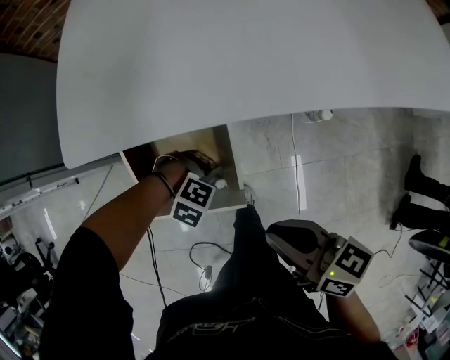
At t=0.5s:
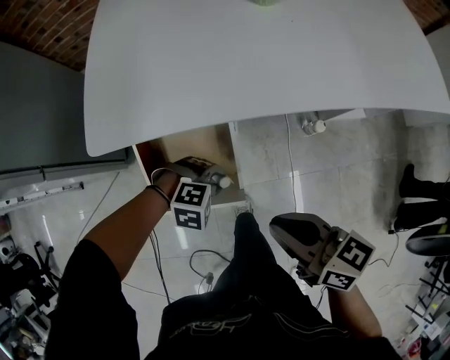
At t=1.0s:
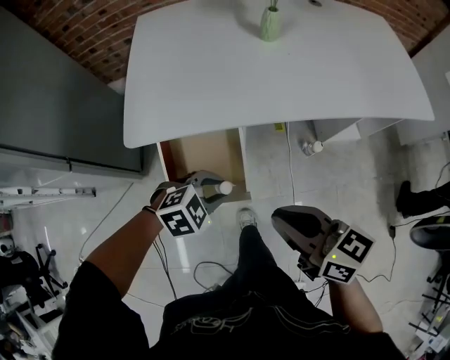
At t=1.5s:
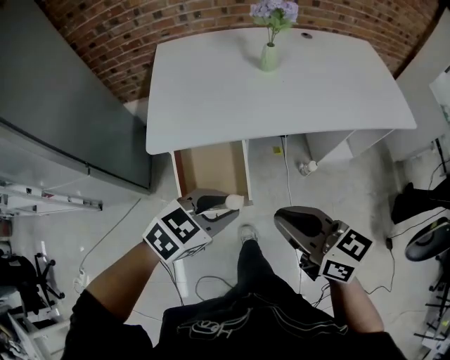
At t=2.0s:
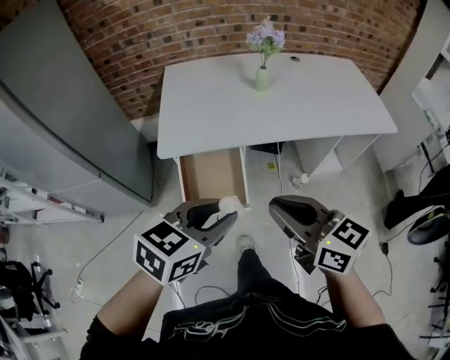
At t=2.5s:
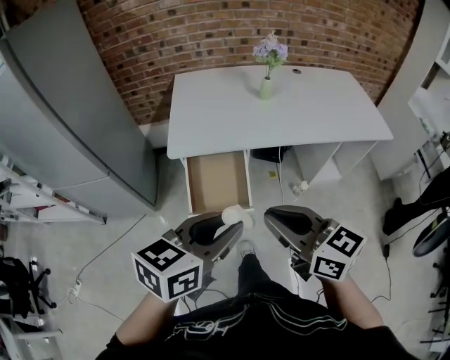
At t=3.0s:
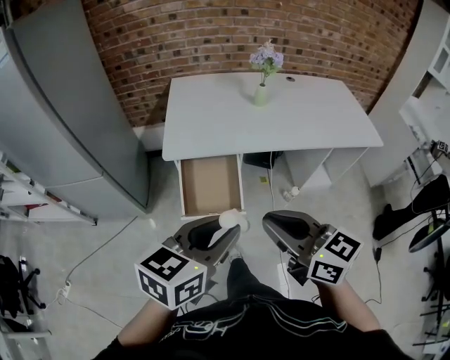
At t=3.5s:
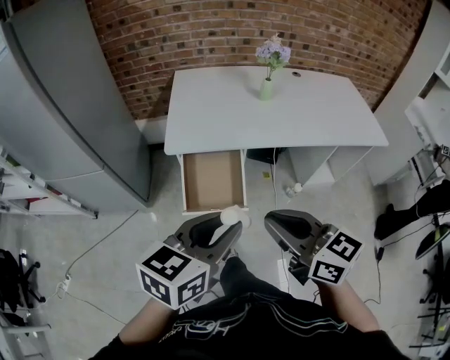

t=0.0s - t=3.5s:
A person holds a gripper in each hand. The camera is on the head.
t=0.0s - t=2.0s: The right gripper moves upward, approximately 35 cm, and turns by roughly 30 degrees, while the left gripper travels upward by approximately 50 cm, and tips its fingers upward by roughly 40 degrees.
t=2.0s - t=3.5s: The grippers both shift backward by some 5 cm.

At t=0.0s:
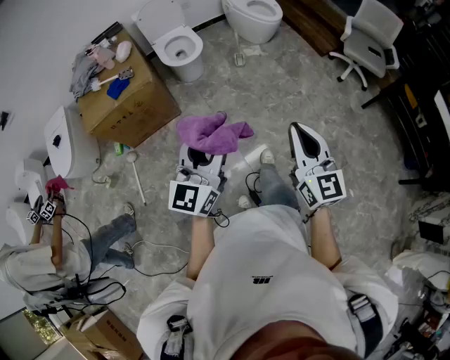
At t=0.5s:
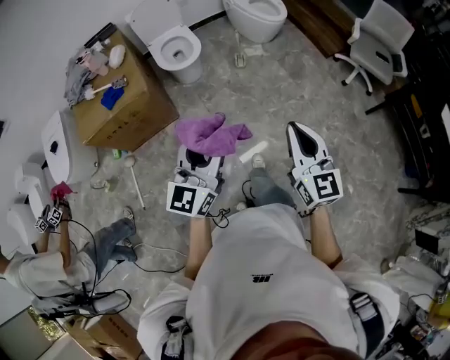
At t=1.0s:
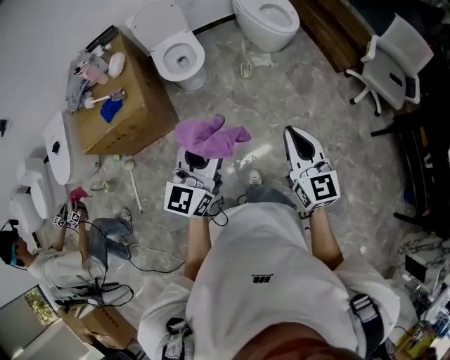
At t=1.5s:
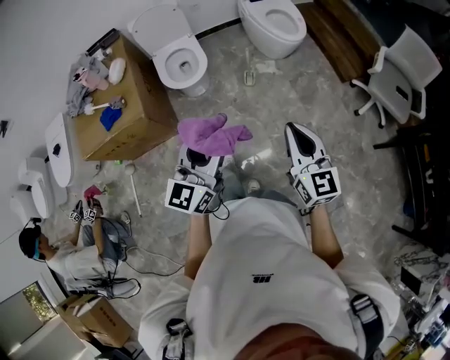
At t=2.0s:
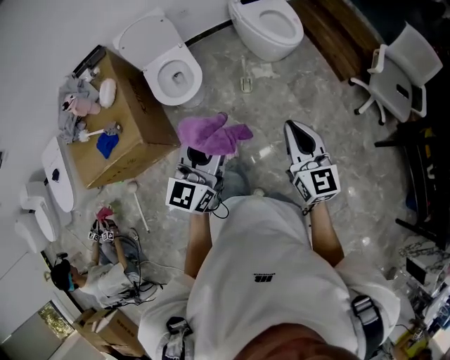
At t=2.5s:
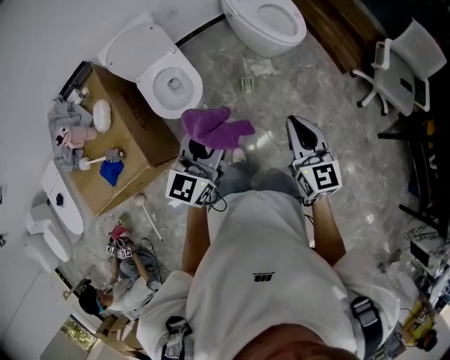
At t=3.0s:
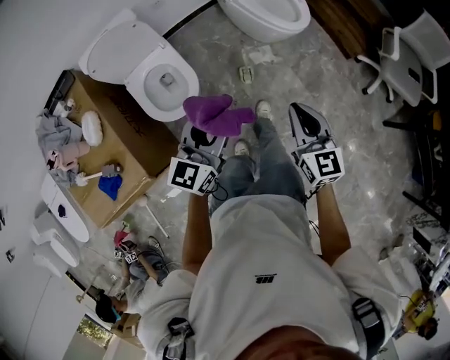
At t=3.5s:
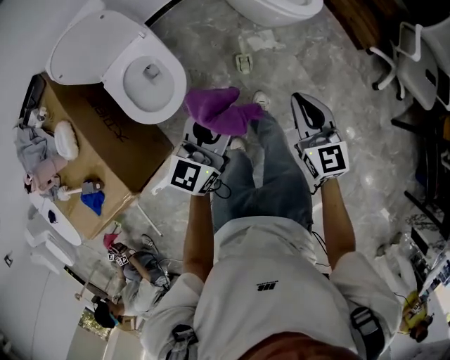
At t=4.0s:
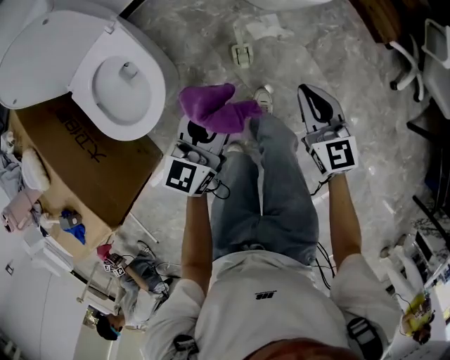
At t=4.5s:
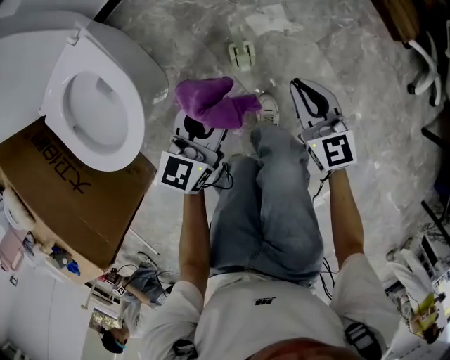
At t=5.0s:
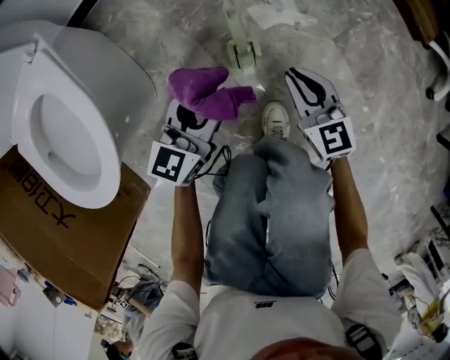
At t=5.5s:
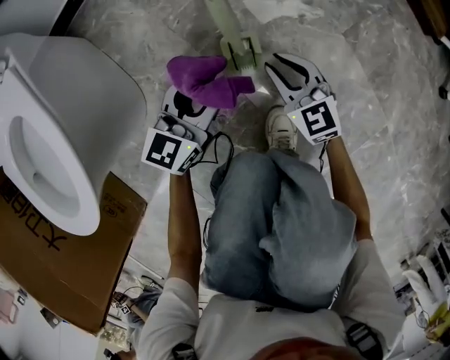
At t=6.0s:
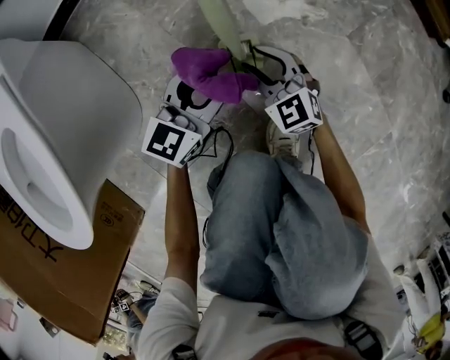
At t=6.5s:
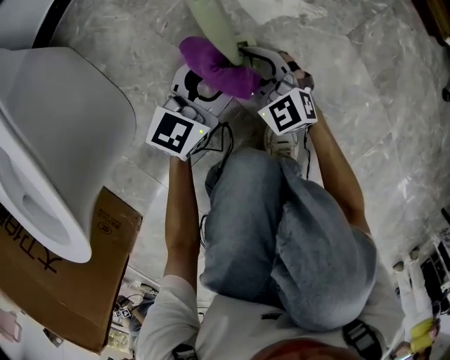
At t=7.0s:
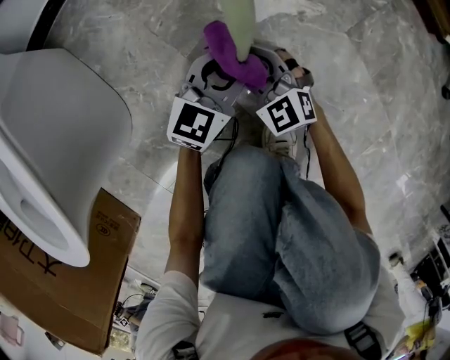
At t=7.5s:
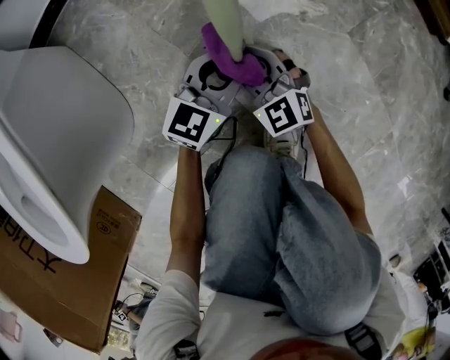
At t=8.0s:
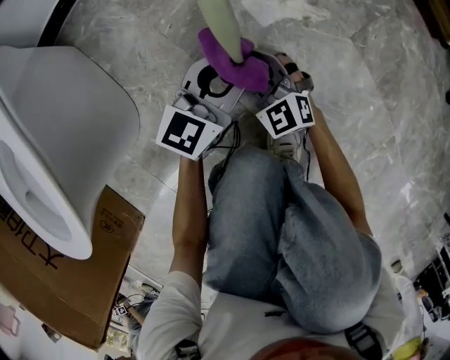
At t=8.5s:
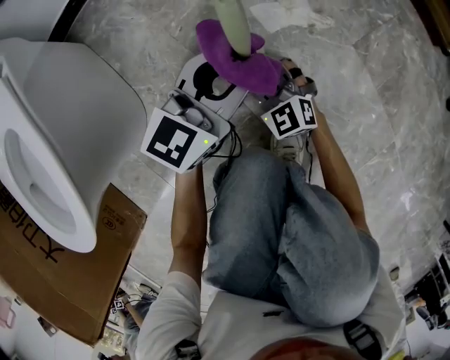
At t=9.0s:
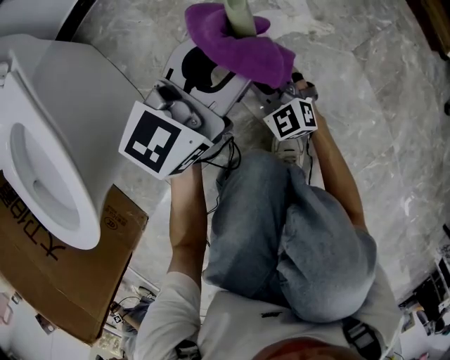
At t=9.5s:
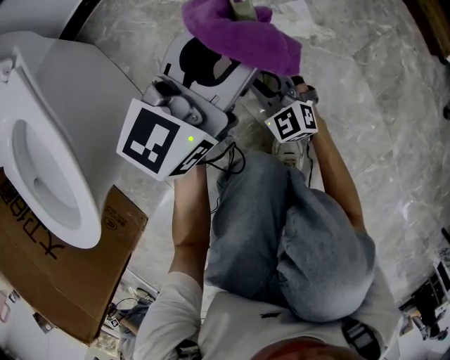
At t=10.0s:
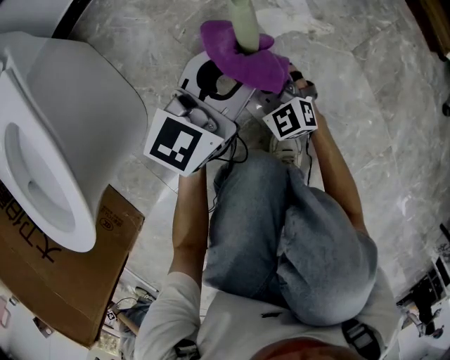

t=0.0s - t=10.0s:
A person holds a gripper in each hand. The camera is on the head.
t=0.0s - t=2.0s: The pair of grippers is taken forward, roughly 50 cm.
t=2.0s - t=4.0s: Both grippers travel together downward and forward, roughly 60 cm.
t=4.0s - t=6.0s: Both grippers move downward, about 50 cm. The right gripper turns by about 30 degrees, and opens.
t=6.0s - t=8.0s: The left gripper shifts by some 5 cm.
t=8.0s - t=10.0s: The left gripper heads upward, covering about 10 cm.

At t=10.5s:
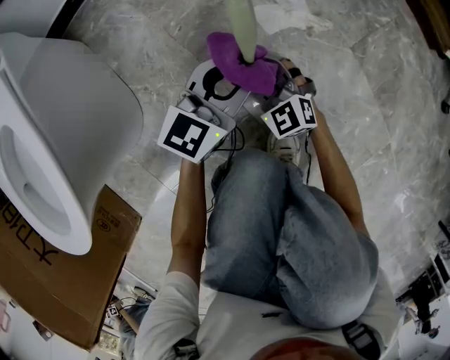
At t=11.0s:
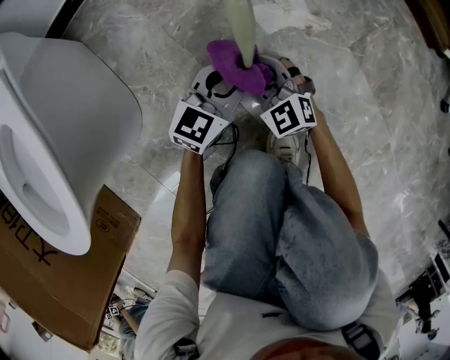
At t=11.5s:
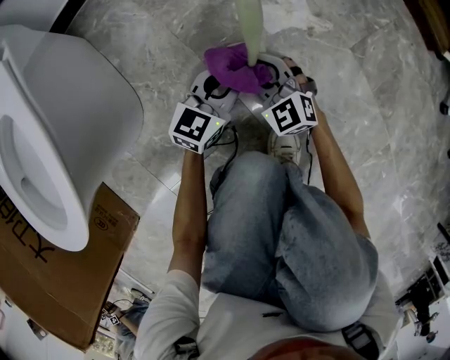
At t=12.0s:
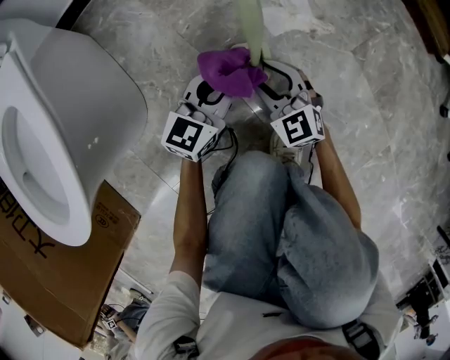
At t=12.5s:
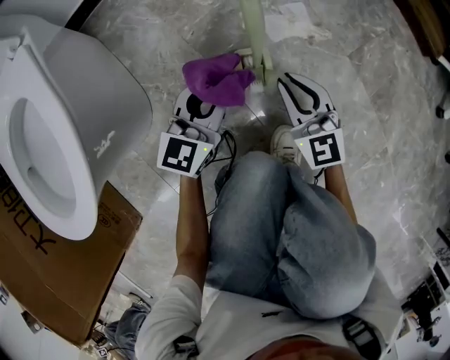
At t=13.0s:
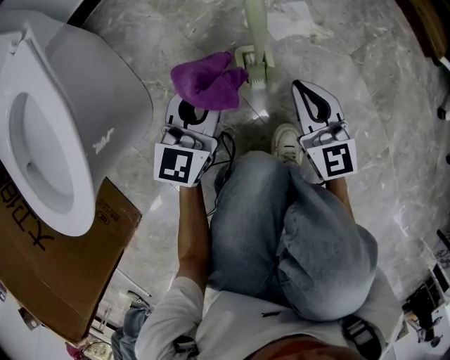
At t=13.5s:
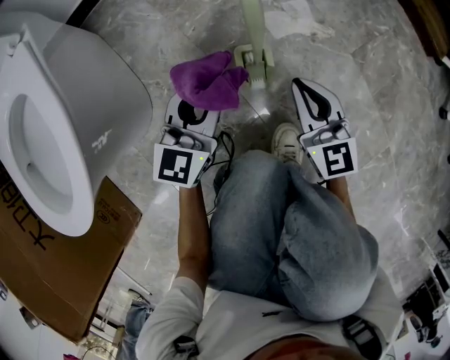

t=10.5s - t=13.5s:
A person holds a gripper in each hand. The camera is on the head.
t=10.5s - t=12.0s: The left gripper goes about 5 cm downward.
t=12.0s - t=13.5s: The right gripper moves upward and to the right, roughly 10 cm, turns by roughly 30 degrees, and closes its fingers. The left gripper heads upward, covering approximately 10 cm.

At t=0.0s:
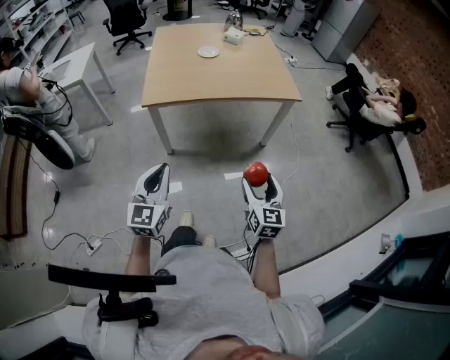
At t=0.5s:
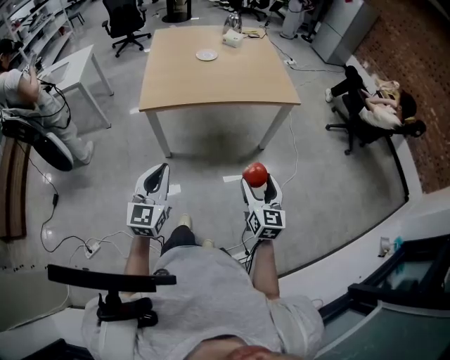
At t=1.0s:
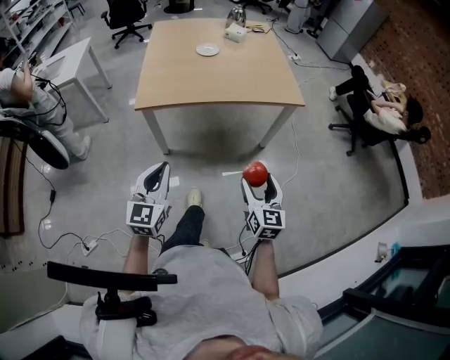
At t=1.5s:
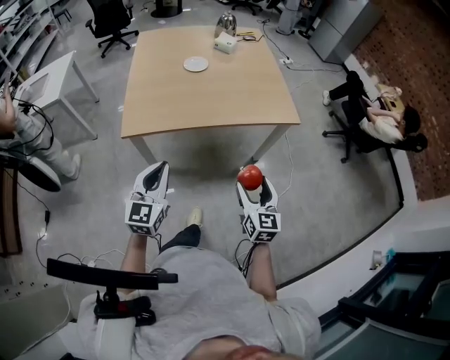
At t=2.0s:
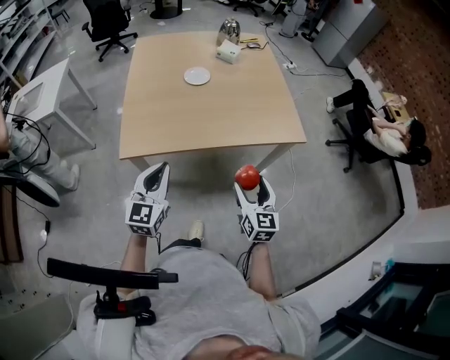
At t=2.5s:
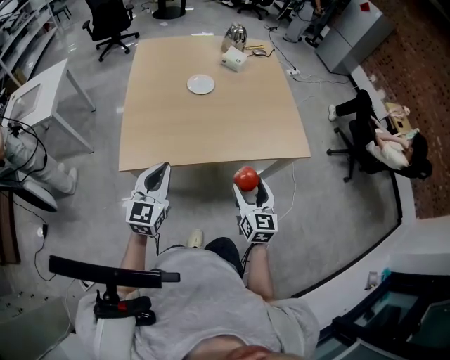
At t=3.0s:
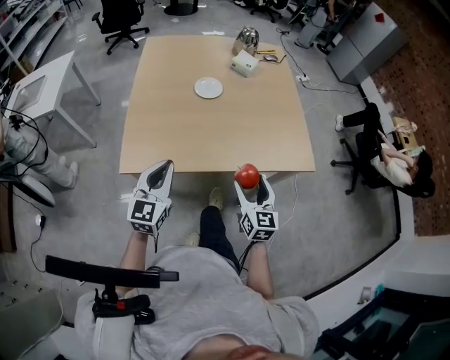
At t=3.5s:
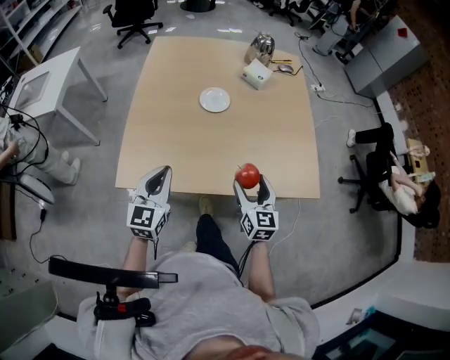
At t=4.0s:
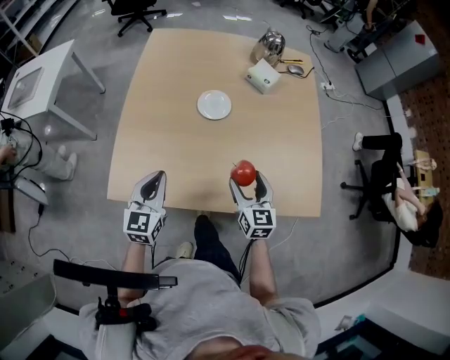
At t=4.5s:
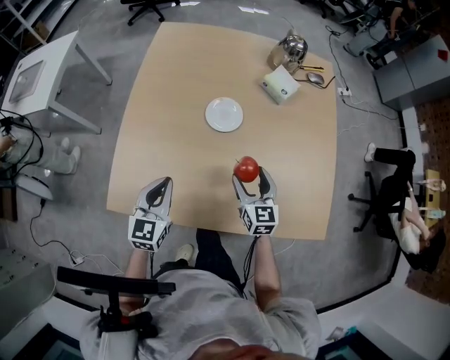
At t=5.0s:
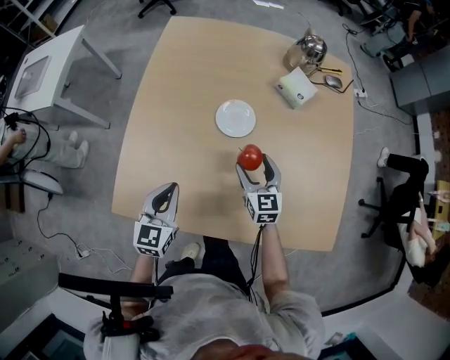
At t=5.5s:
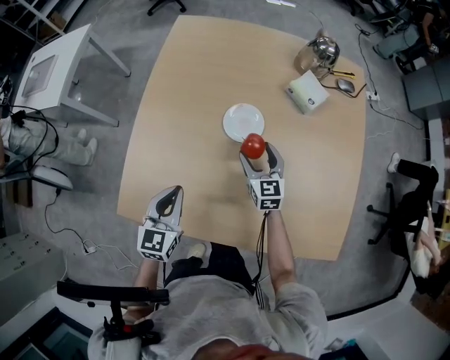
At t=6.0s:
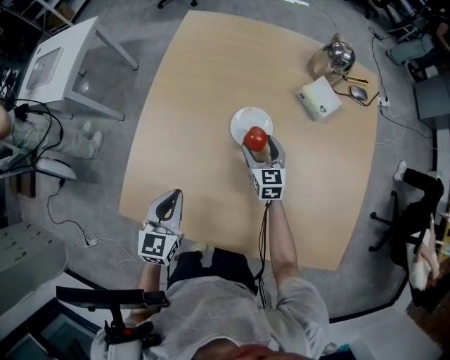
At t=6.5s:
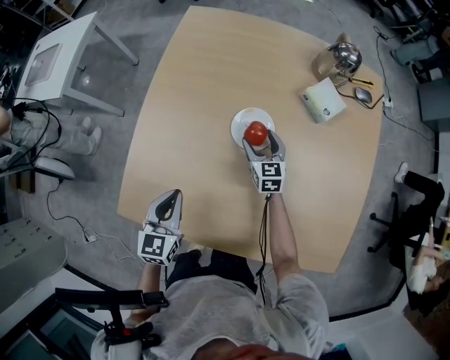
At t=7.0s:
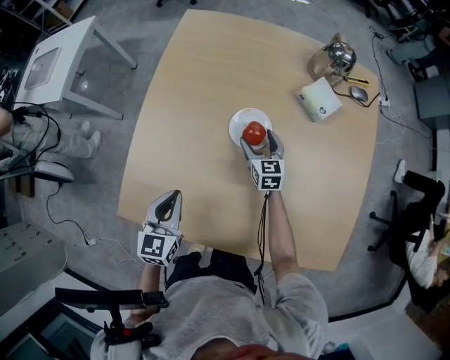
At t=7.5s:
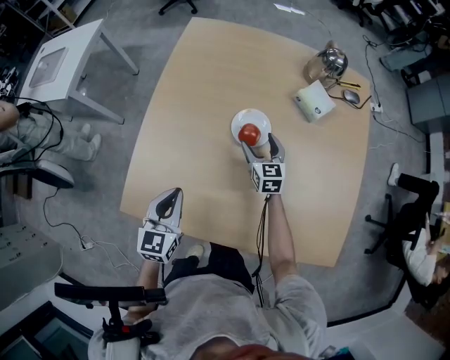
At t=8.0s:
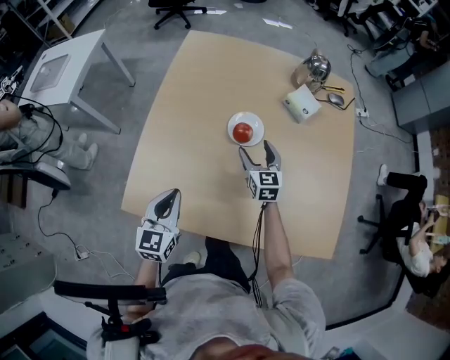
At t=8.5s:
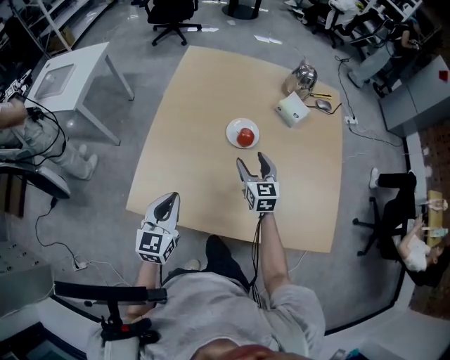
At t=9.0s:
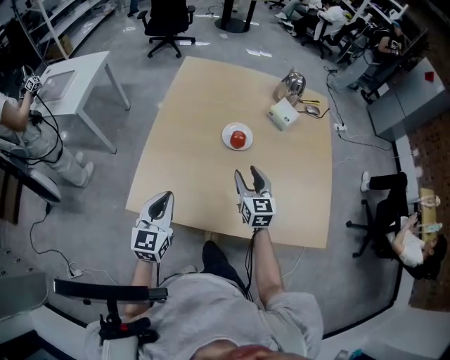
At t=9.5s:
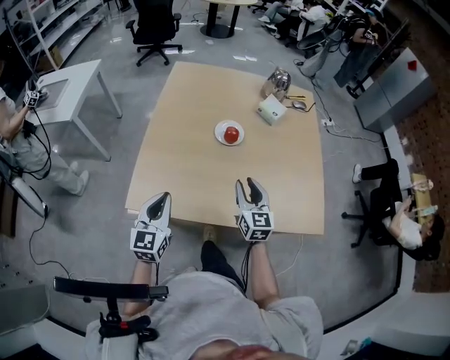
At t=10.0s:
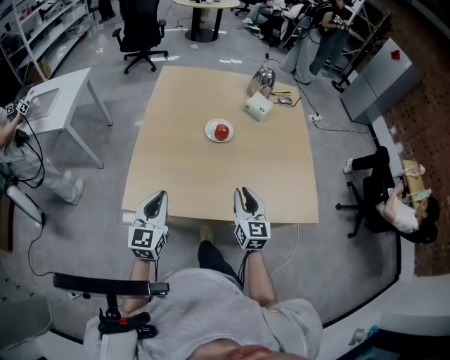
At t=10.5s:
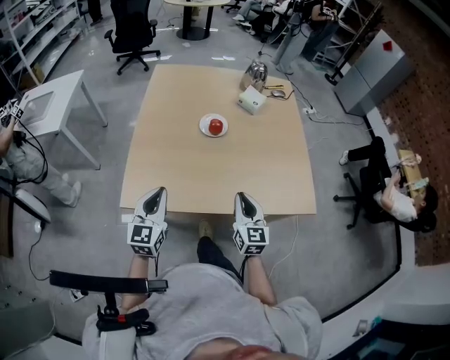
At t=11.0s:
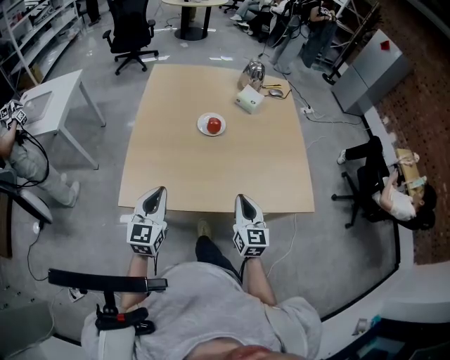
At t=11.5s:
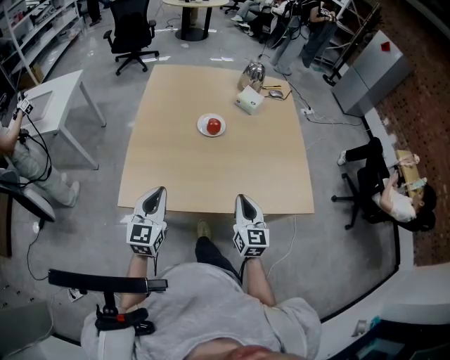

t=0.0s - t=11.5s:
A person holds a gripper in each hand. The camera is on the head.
t=0.0s - t=2.0s: The grippers both shift forward by some 35 cm.
t=2.0s - t=4.0s: Both grippers travel together forward, some 30 cm.
t=4.0s - t=6.0s: The right gripper heads forward and downward, covering roughly 30 cm. Meanwhile the left gripper heads forward and downward, covering about 10 cm.
t=6.0s - t=7.5s: The grippers make only small movements.
t=7.5s - t=9.5s: The left gripper is displaced backward and upward by approximately 15 cm; the right gripper moves backward and upward, some 30 cm, and closes up.
t=9.5s - t=11.5s: The right gripper goes roughly 10 cm backward, and closes up.
